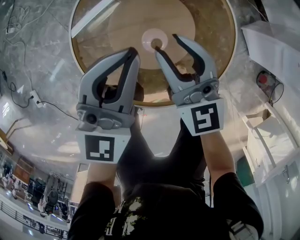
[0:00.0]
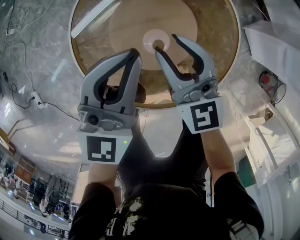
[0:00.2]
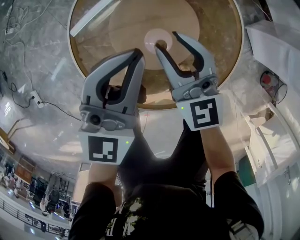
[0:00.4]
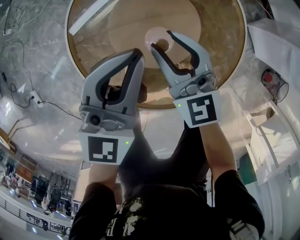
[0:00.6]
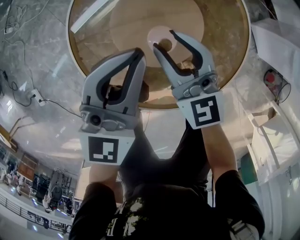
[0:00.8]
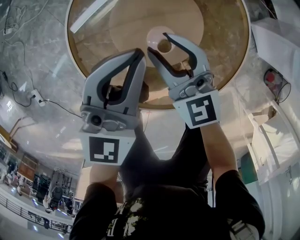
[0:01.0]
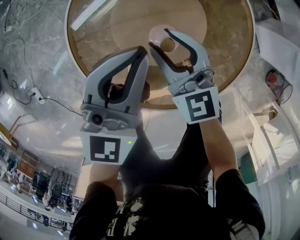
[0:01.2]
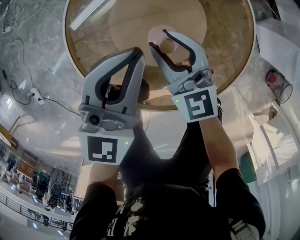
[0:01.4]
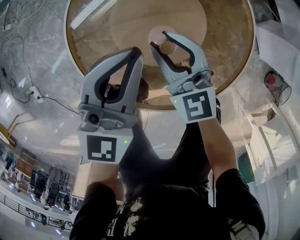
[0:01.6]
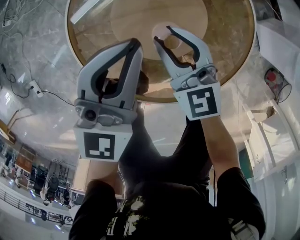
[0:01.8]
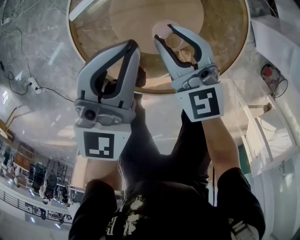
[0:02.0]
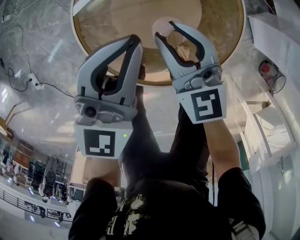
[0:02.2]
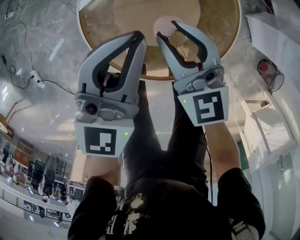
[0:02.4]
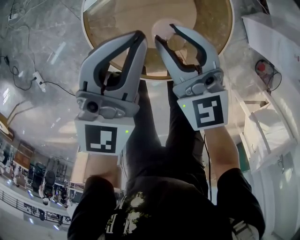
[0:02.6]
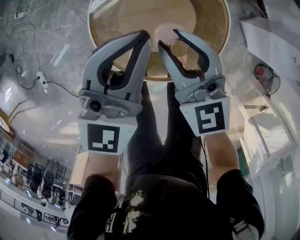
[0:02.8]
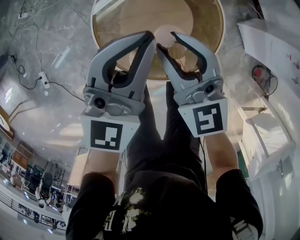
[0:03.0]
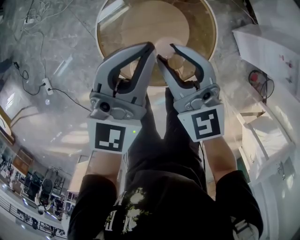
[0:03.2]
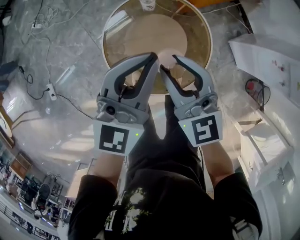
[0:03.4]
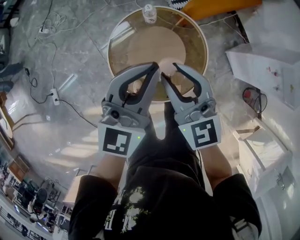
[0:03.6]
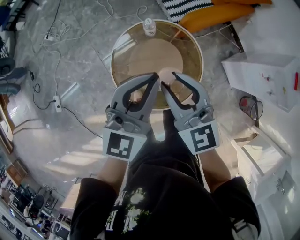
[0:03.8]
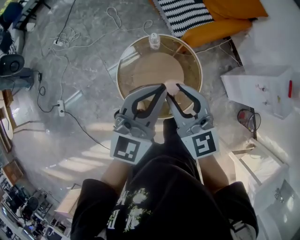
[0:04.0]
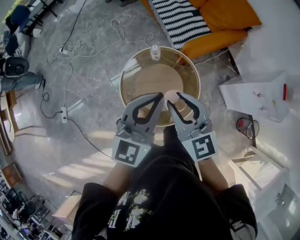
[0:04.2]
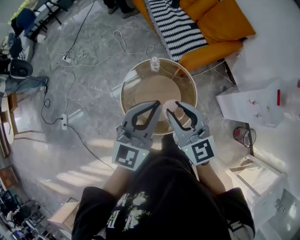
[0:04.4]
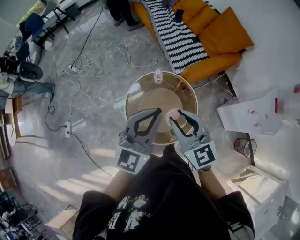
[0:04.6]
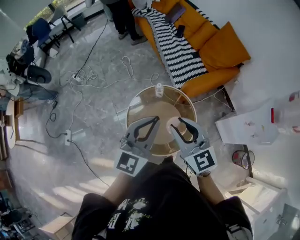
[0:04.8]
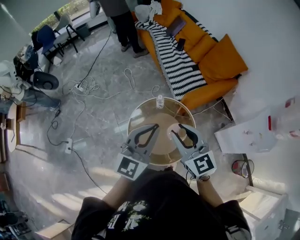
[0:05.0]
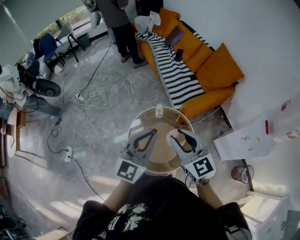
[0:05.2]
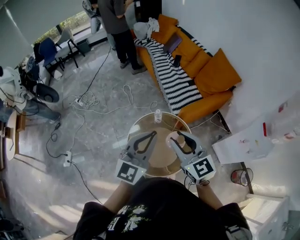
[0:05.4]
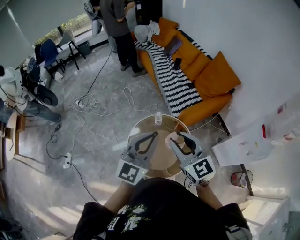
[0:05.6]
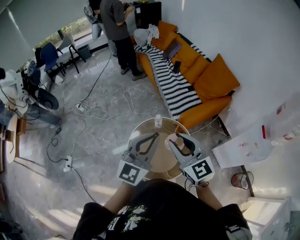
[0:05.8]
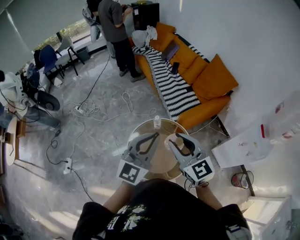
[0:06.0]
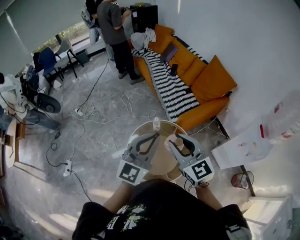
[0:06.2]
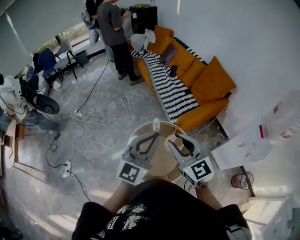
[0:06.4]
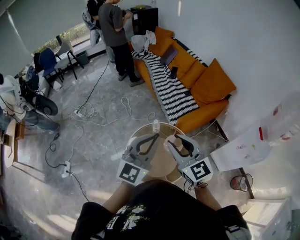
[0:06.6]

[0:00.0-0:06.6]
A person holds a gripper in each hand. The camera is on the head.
0:00.0 to 0:01.6: The left gripper travels downward by roughly 5 cm. The right gripper is displaced downward by roughly 10 cm.
0:01.6 to 0:03.2: Both grippers travel together upward, roughly 35 cm.
0:03.2 to 0:05.0: Both grippers travel together upward, approximately 35 cm.
0:05.0 to 0:06.6: Both grippers travel together upward, about 5 cm.

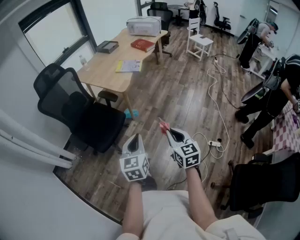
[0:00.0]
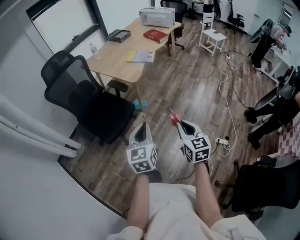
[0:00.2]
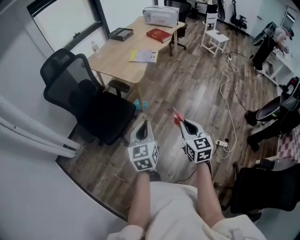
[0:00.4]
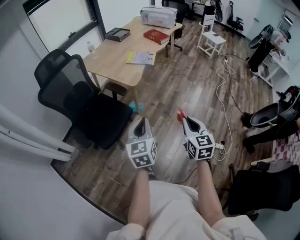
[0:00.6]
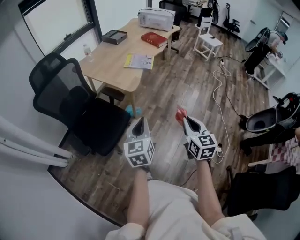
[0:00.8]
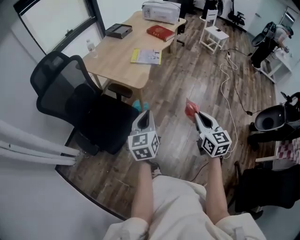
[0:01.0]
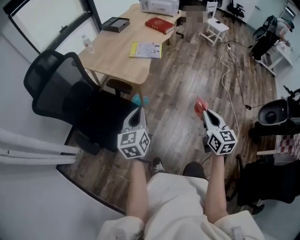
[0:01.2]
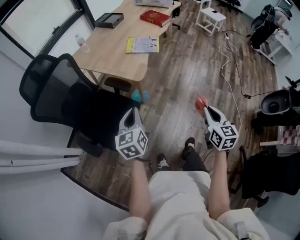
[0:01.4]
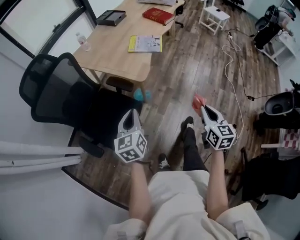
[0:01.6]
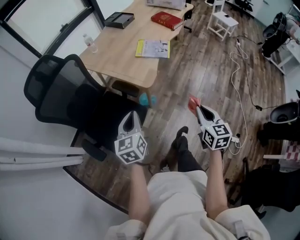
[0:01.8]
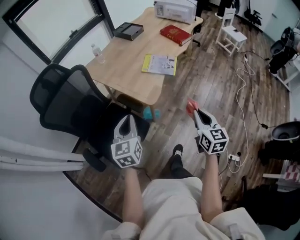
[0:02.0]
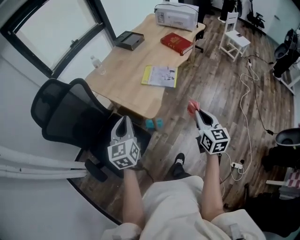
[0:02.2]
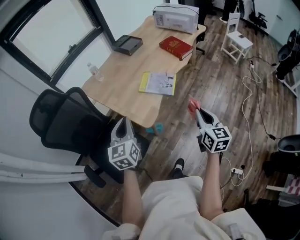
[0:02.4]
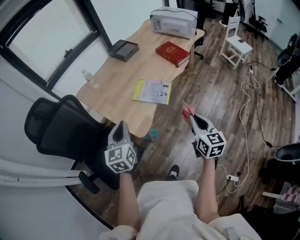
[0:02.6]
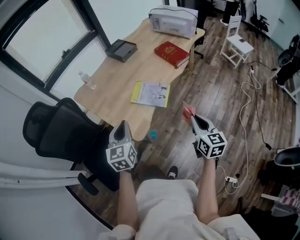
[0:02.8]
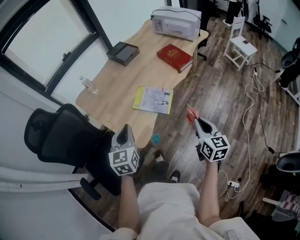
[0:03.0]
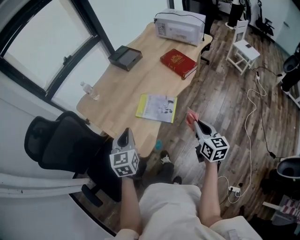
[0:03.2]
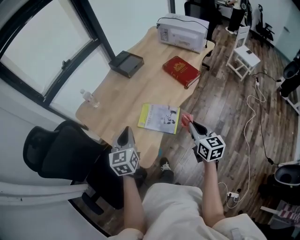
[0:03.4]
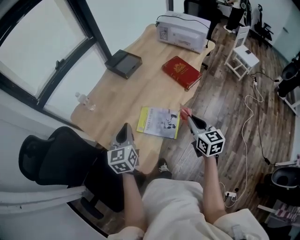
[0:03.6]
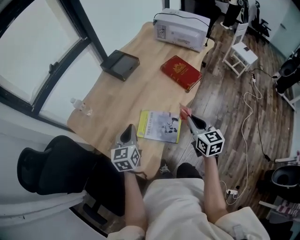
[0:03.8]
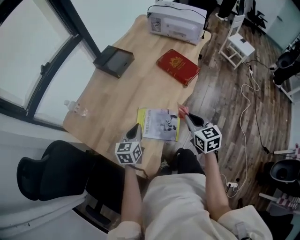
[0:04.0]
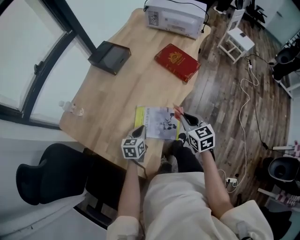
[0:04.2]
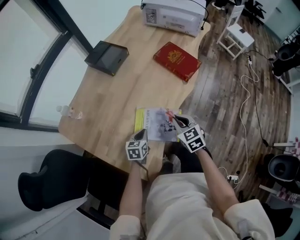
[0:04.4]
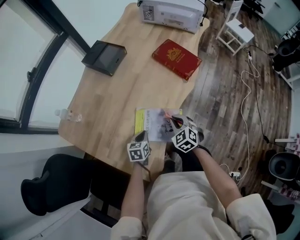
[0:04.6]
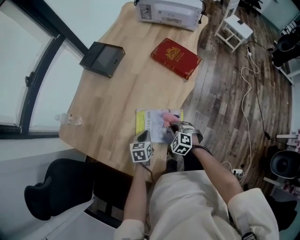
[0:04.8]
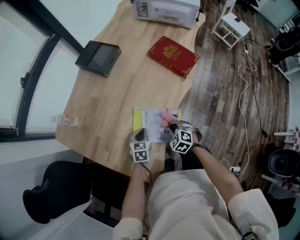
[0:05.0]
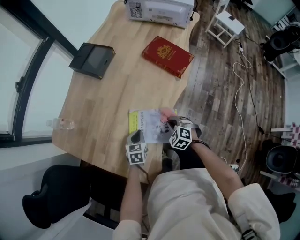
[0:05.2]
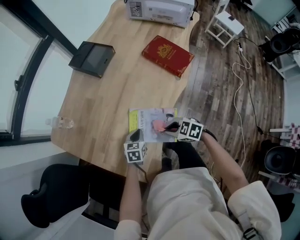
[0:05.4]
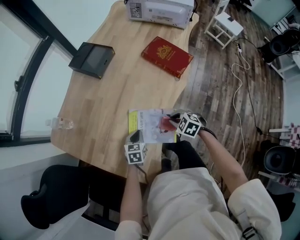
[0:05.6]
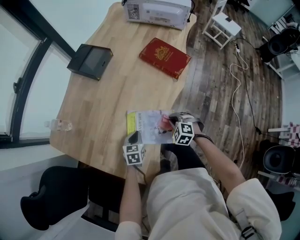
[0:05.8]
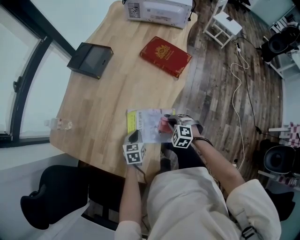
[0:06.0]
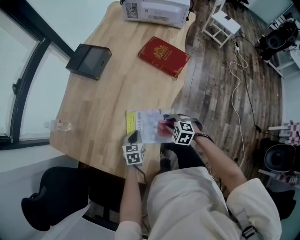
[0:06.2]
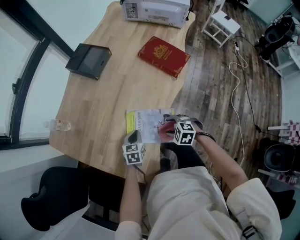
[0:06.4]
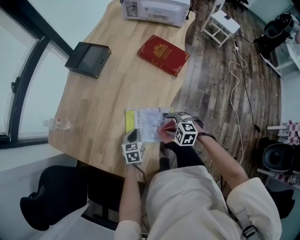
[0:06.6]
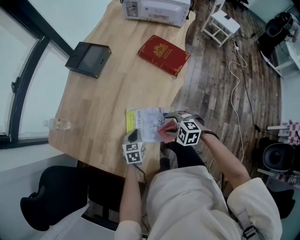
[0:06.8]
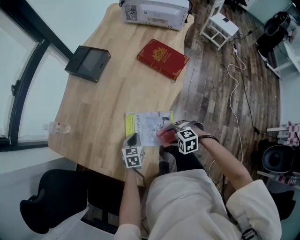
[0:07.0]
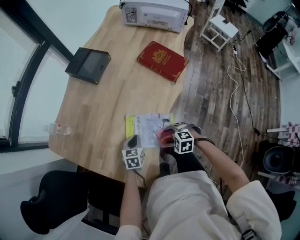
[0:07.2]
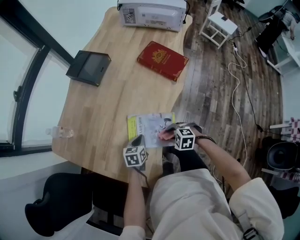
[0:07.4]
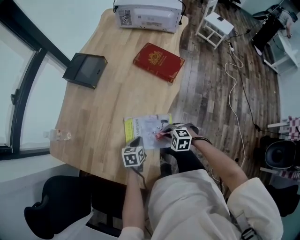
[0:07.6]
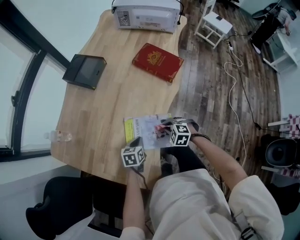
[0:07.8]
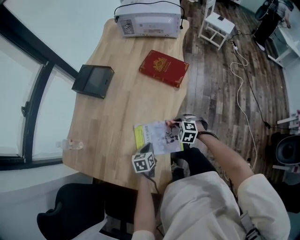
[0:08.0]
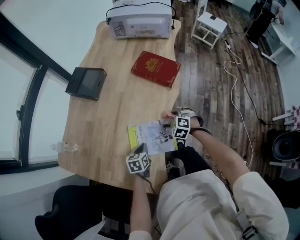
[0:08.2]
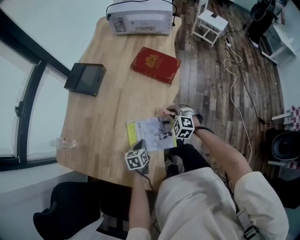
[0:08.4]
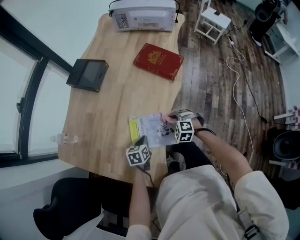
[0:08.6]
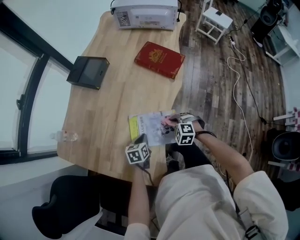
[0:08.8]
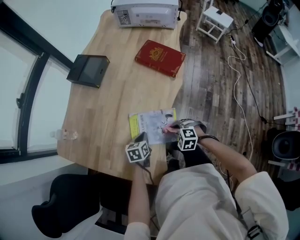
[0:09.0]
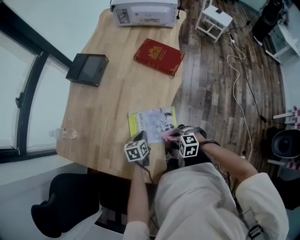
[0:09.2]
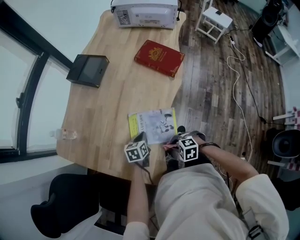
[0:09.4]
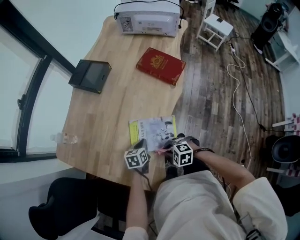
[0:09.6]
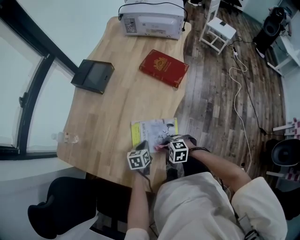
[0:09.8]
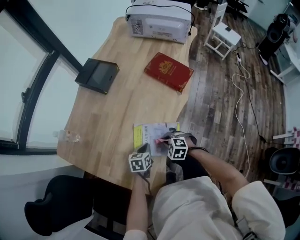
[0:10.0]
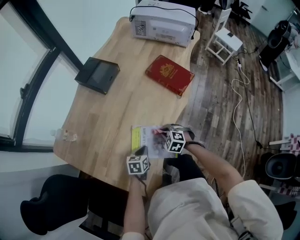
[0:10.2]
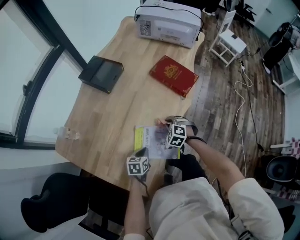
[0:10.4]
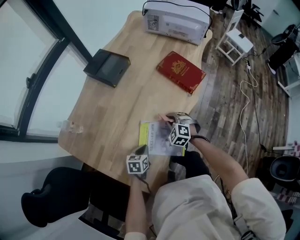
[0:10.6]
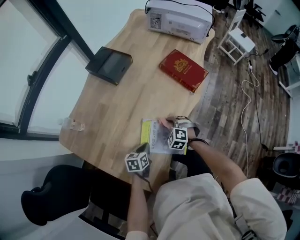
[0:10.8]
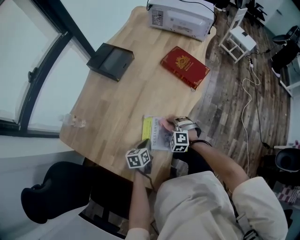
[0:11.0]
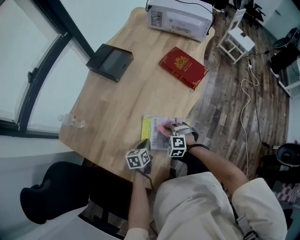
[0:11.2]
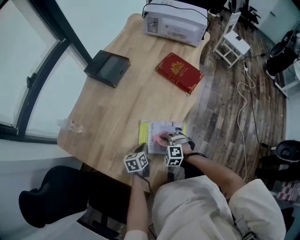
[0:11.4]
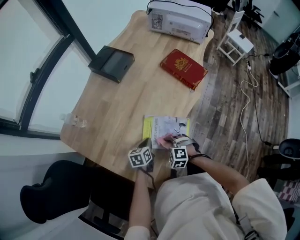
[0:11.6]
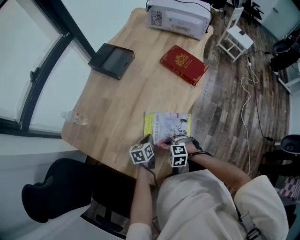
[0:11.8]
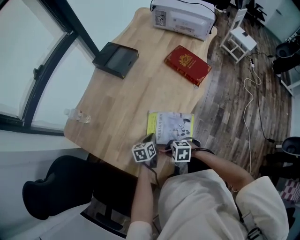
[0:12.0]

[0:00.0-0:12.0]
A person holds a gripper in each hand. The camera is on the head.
0:00.0 to 0:01.6: The right gripper shifts approximately 30 cm forward. The left gripper moves forward and to the left, about 40 cm.
0:01.6 to 0:03.0: The grippers both shift forward by some 35 cm.
0:03.0 to 0:04.4: The left gripper shifts about 40 cm downward and forward, and rotates approximately 40 degrees; the right gripper is displaced forward, downward and to the left by about 35 cm, and rotates about 30 degrees.
0:04.4 to 0:06.0: The right gripper moves up and down over roughly 15 cm, changing direction 2 times, and changes its angle by approximately 40 degrees.
0:06.0 to 0:07.6: The right gripper opens and closes again.
0:09.0 to 0:10.4: The right gripper shifts by approximately 15 cm.
0:10.4 to 0:12.0: The right gripper shifts by approximately 25 cm, and swivels approximately 40 degrees.

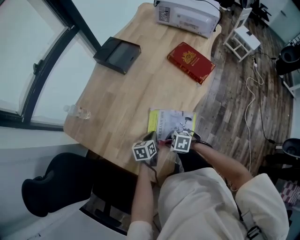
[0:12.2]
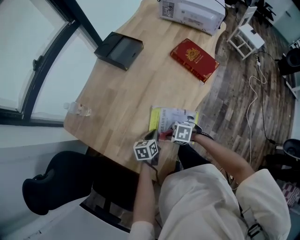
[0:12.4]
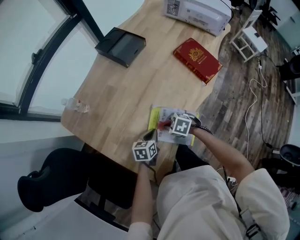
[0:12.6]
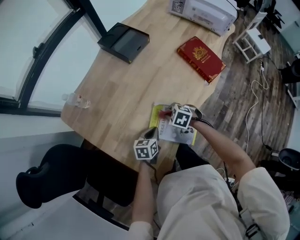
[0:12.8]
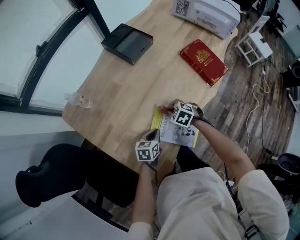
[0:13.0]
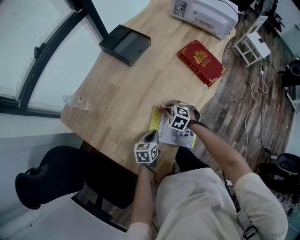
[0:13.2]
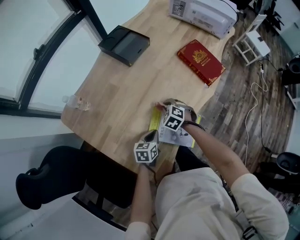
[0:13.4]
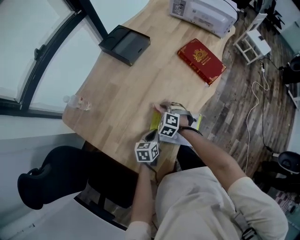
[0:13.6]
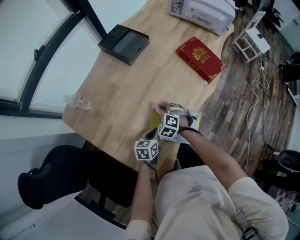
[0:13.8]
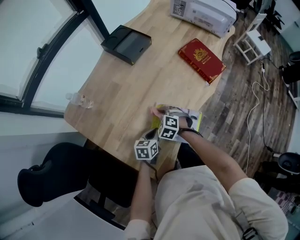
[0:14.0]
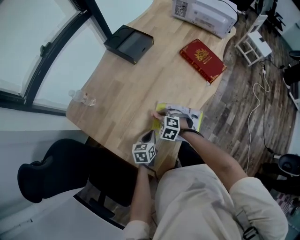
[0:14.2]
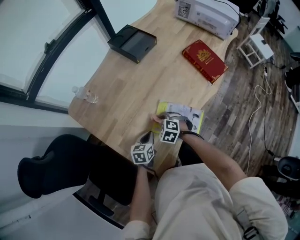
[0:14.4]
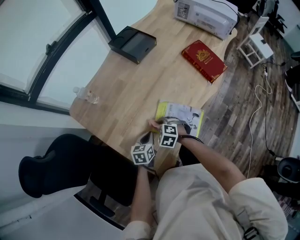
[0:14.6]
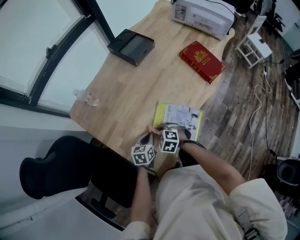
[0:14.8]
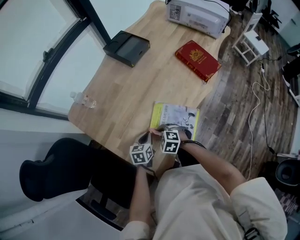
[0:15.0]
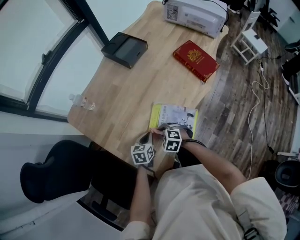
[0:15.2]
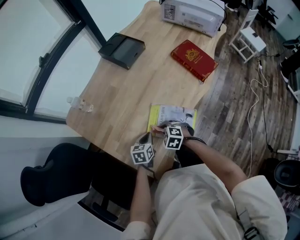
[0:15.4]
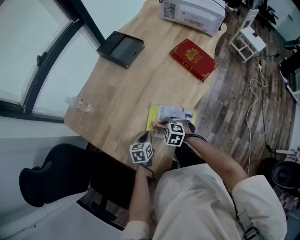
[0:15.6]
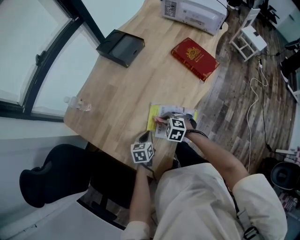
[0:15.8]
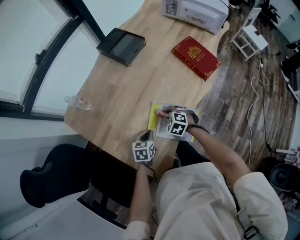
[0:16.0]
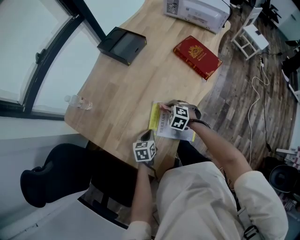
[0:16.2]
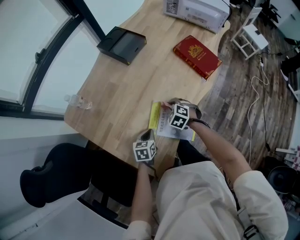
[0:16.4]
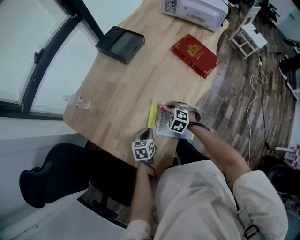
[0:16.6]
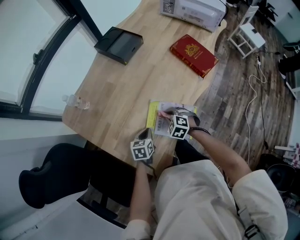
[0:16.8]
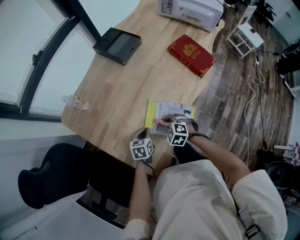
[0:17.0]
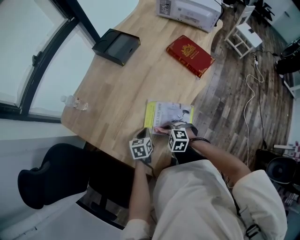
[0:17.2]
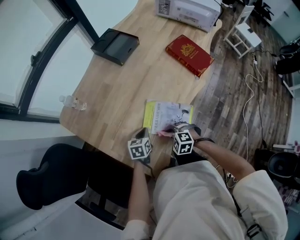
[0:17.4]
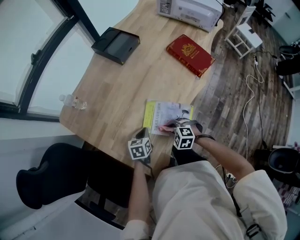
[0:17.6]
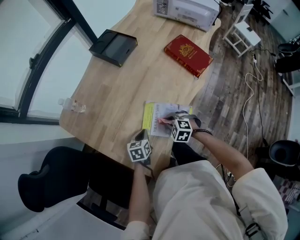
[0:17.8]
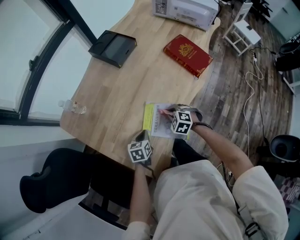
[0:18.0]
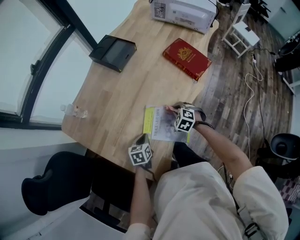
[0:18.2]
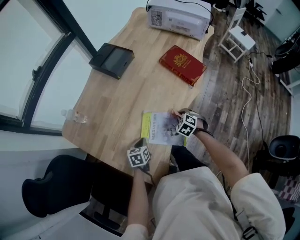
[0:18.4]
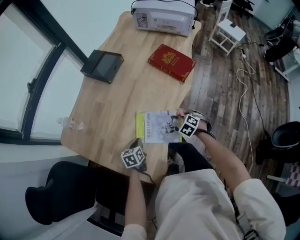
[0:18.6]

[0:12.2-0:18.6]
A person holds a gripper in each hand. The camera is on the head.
0:12.2 to 0:13.8: The right gripper ends up about 20 cm from where it was, and changes its angle by approximately 40 degrees.
0:13.8 to 0:15.4: The right gripper travels backward by roughly 10 cm.
0:15.4 to 0:17.0: The right gripper goes forward and returns, approximately 10 cm each way.
0:17.0 to 0:18.6: The right gripper moves roughly 20 cm, and turns by approximately 30 degrees.
